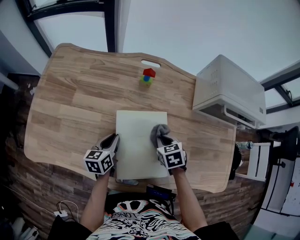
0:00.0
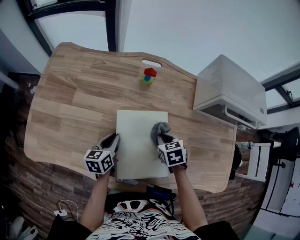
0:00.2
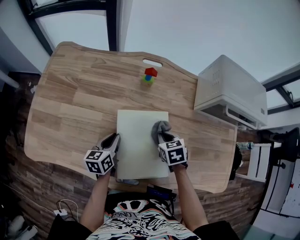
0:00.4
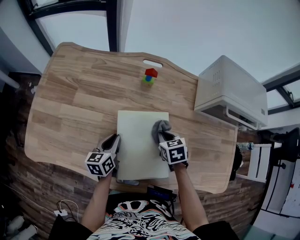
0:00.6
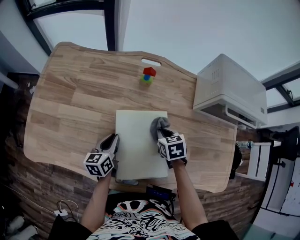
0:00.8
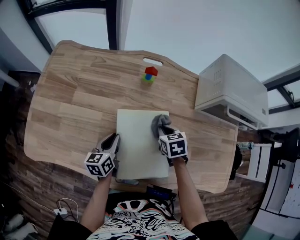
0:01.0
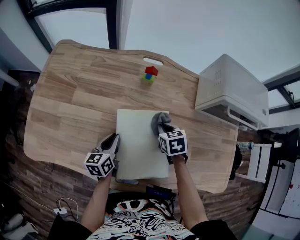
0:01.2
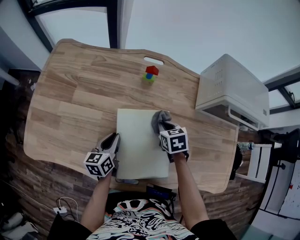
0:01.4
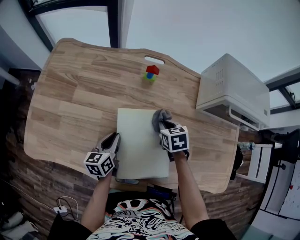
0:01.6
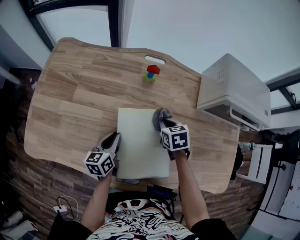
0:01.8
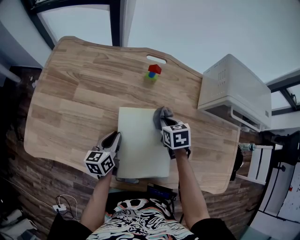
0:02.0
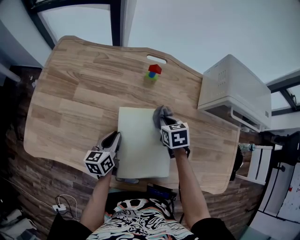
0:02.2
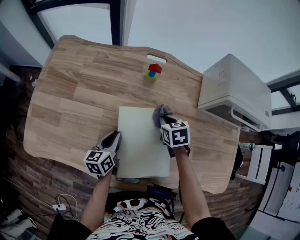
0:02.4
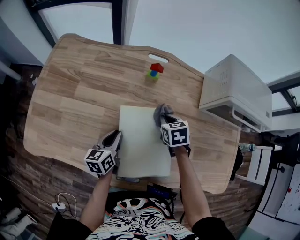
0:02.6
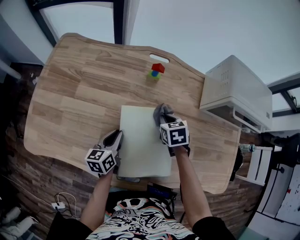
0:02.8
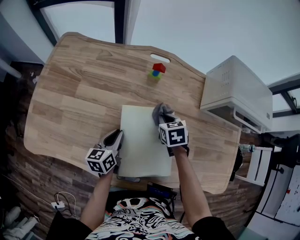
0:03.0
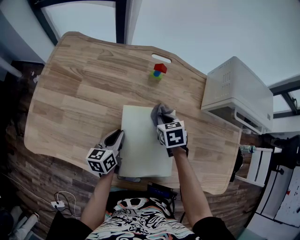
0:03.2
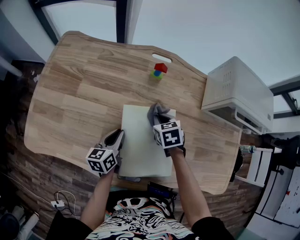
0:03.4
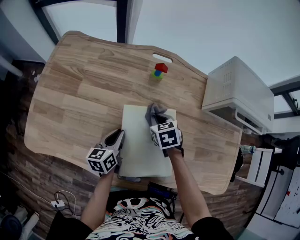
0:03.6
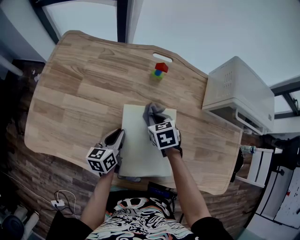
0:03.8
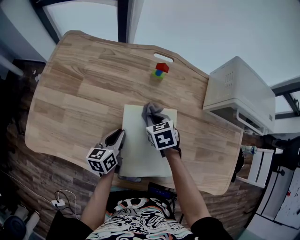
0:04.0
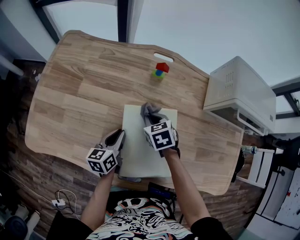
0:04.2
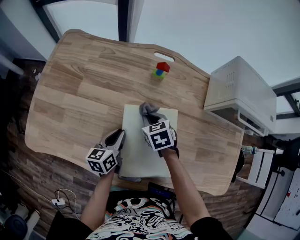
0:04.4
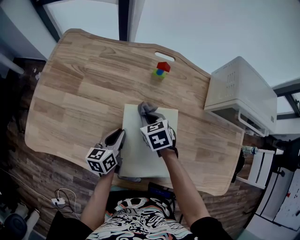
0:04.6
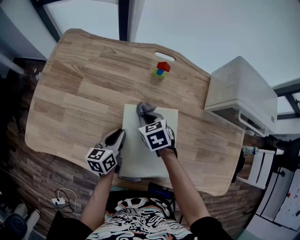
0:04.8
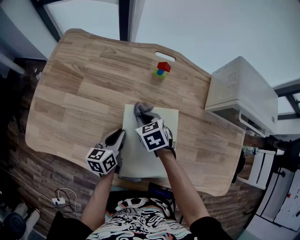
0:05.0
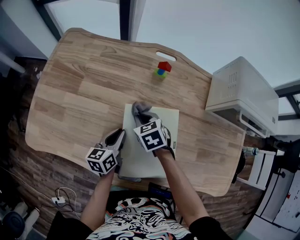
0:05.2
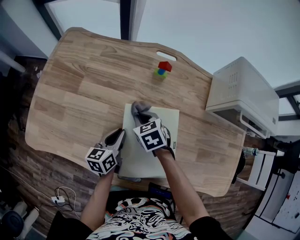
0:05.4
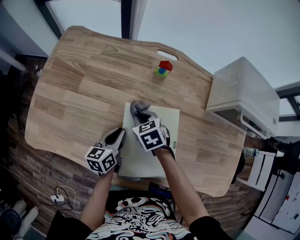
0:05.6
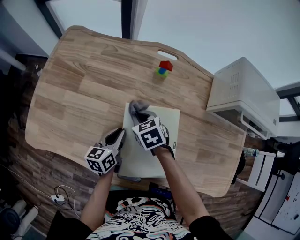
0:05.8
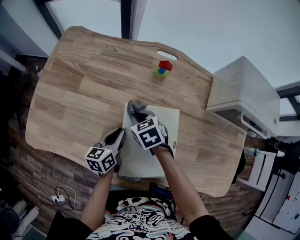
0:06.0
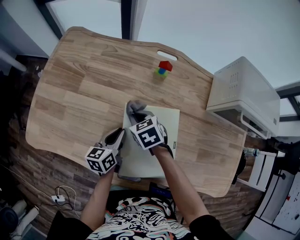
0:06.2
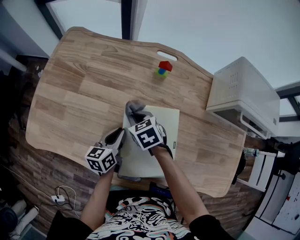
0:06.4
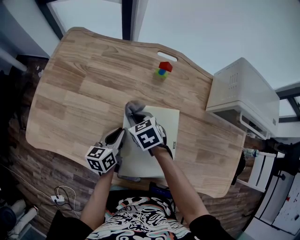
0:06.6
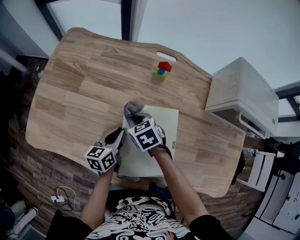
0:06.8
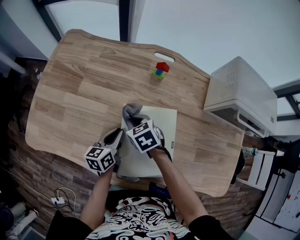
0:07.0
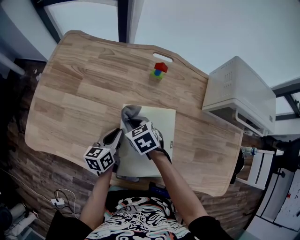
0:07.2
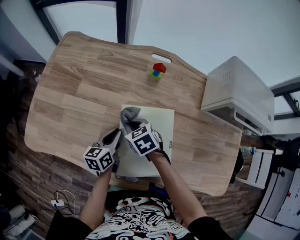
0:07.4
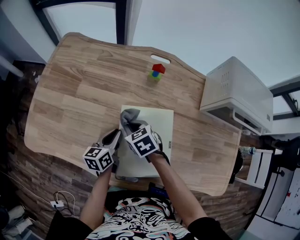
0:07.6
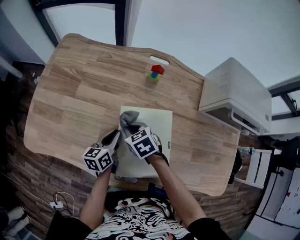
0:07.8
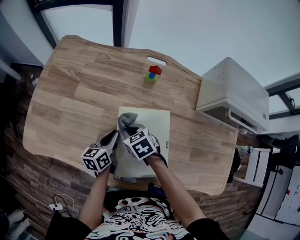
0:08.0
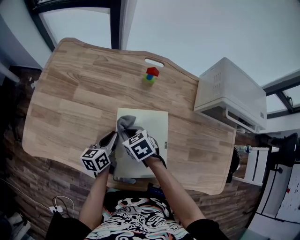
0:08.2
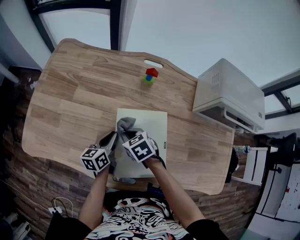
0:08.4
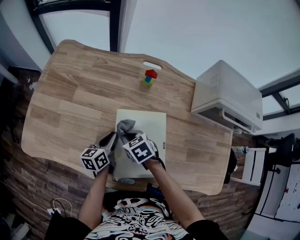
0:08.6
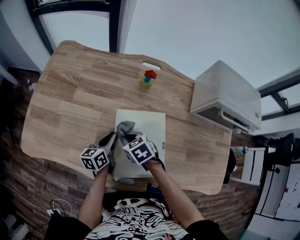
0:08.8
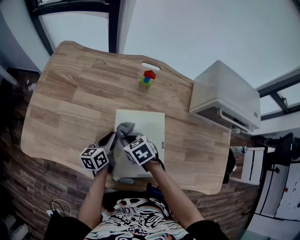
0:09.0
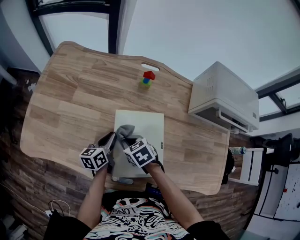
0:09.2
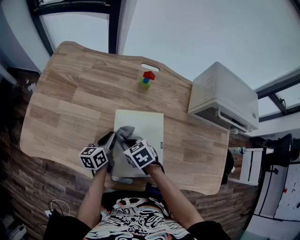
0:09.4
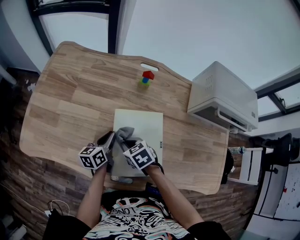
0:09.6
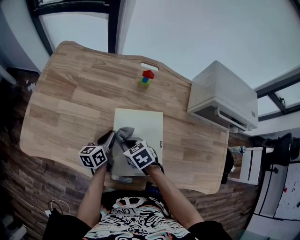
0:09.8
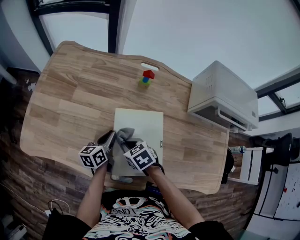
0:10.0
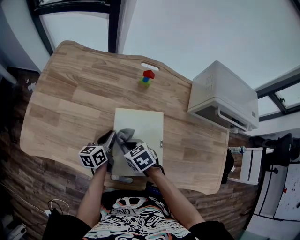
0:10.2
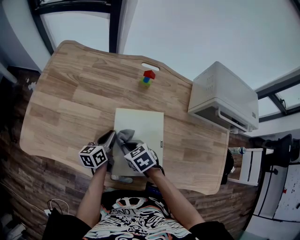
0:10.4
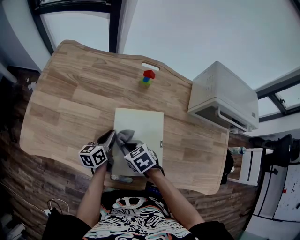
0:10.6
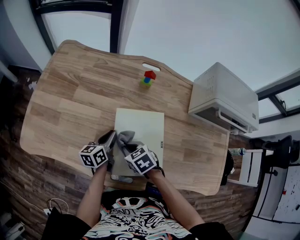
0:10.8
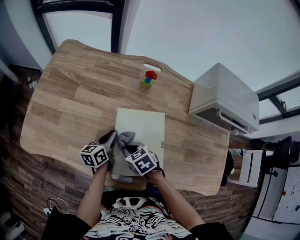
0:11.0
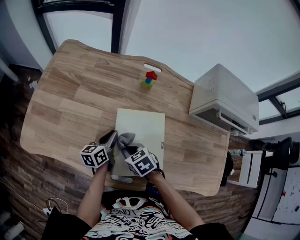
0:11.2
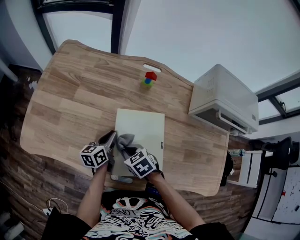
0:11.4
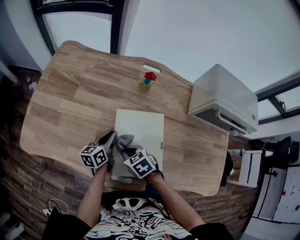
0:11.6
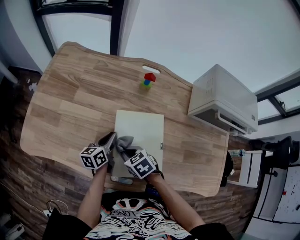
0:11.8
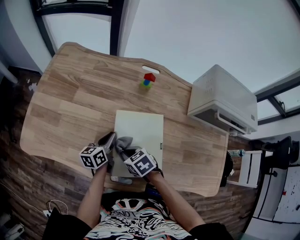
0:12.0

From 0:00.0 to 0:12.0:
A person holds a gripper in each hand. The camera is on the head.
From 0:00.0 to 0:01.6: The right gripper is displaced forward by roughly 5 cm.
From 0:01.6 to 0:03.0: The grippers move only a little.
From 0:03.0 to 0:04.4: The right gripper shifts about 10 cm to the left.
From 0:04.4 to 0:06.0: The right gripper heads to the left, covering roughly 5 cm.
From 0:06.0 to 0:07.6: The grippers move only a little.
From 0:07.6 to 0:09.0: The grippers move only a little.
From 0:09.0 to 0:10.4: The grippers stay close to where they were, moving slightly.
From 0:10.4 to 0:12.0: The grippers move only a little.

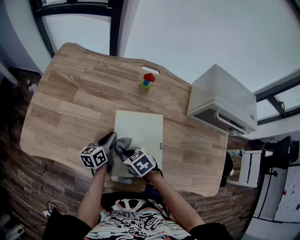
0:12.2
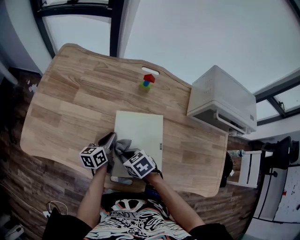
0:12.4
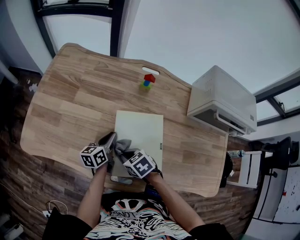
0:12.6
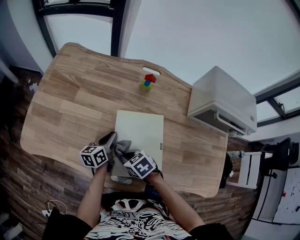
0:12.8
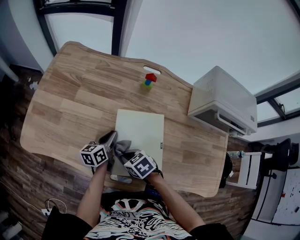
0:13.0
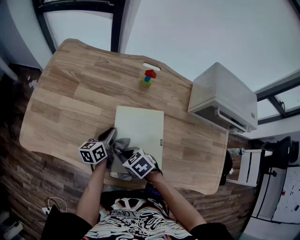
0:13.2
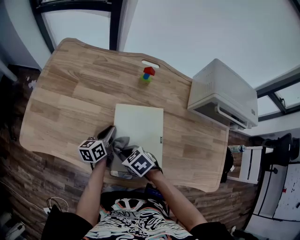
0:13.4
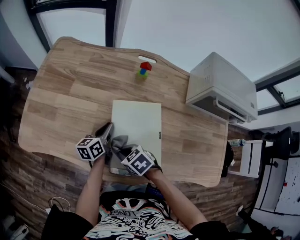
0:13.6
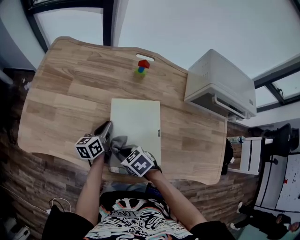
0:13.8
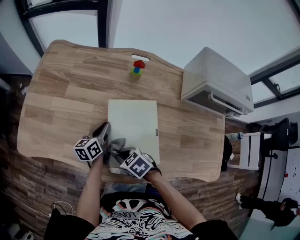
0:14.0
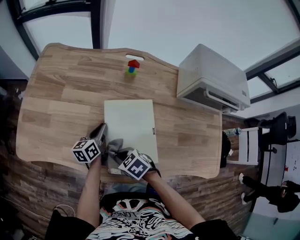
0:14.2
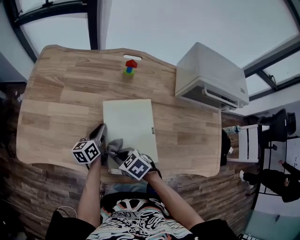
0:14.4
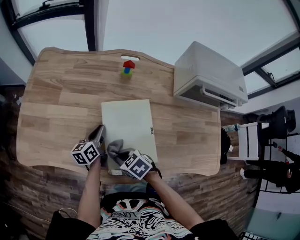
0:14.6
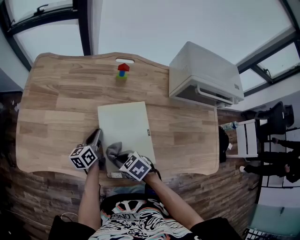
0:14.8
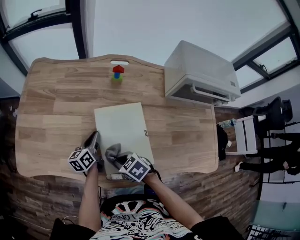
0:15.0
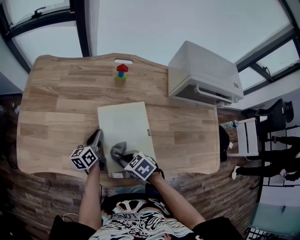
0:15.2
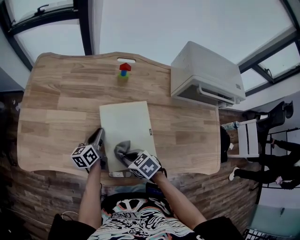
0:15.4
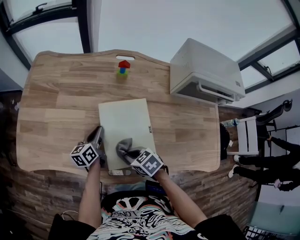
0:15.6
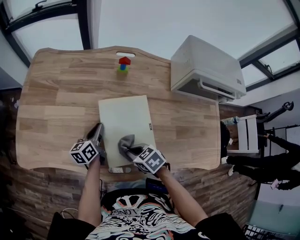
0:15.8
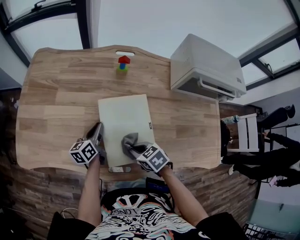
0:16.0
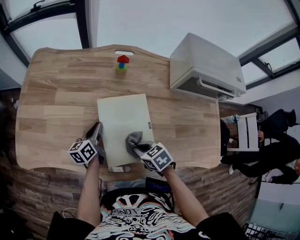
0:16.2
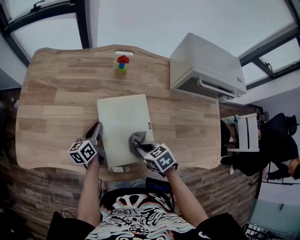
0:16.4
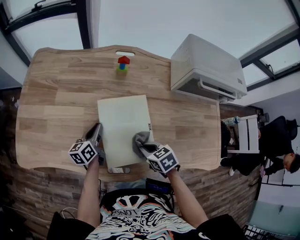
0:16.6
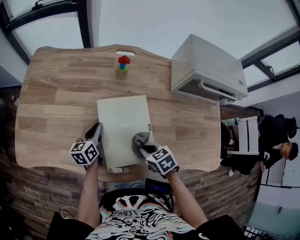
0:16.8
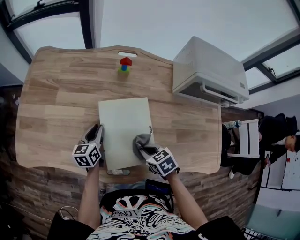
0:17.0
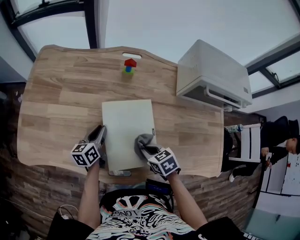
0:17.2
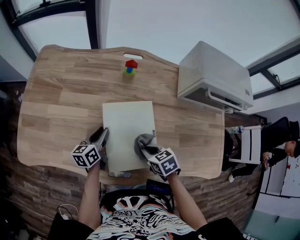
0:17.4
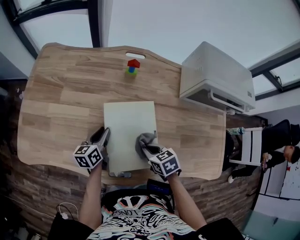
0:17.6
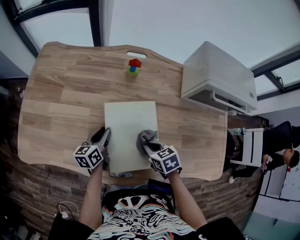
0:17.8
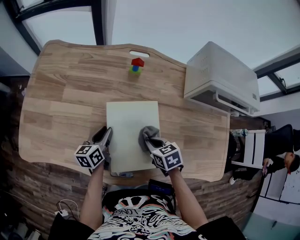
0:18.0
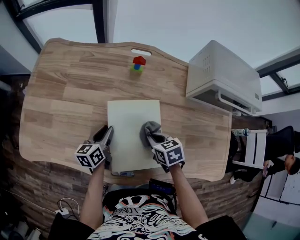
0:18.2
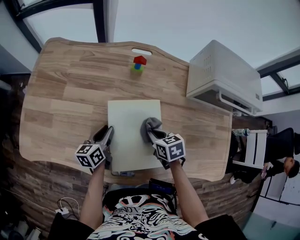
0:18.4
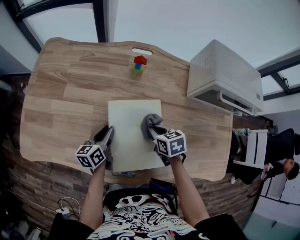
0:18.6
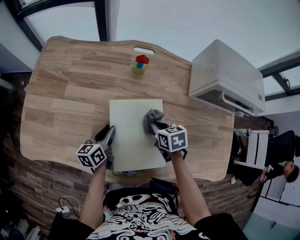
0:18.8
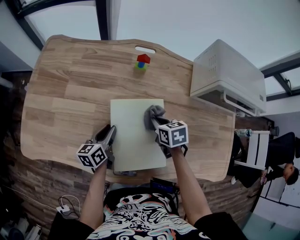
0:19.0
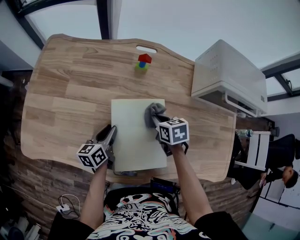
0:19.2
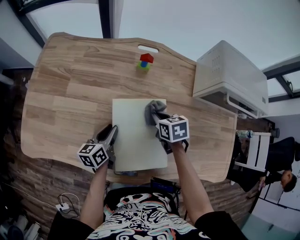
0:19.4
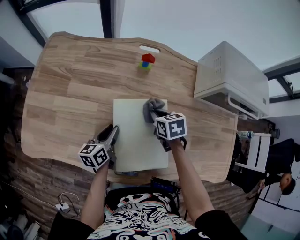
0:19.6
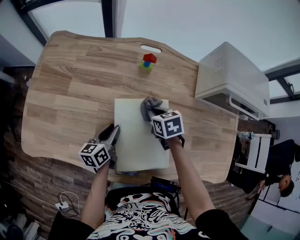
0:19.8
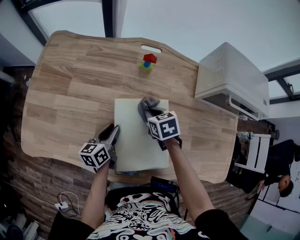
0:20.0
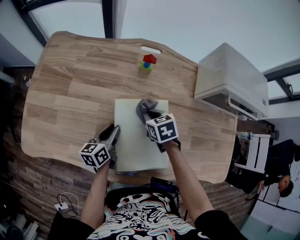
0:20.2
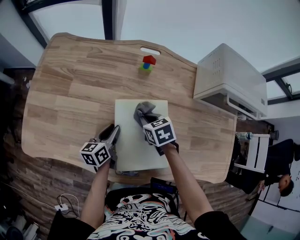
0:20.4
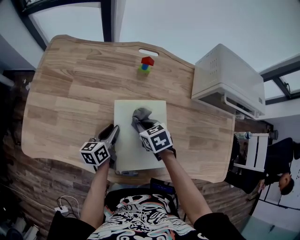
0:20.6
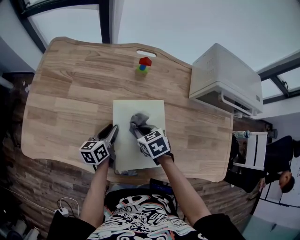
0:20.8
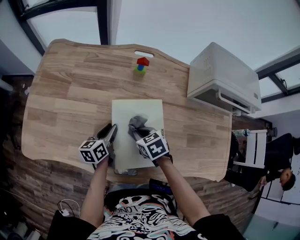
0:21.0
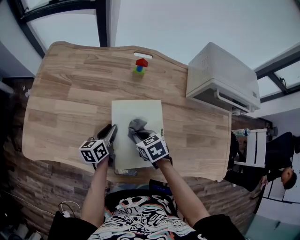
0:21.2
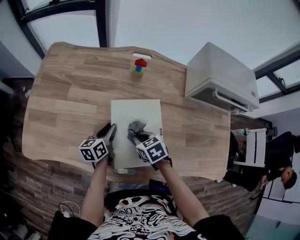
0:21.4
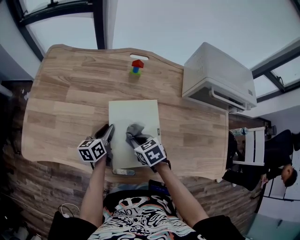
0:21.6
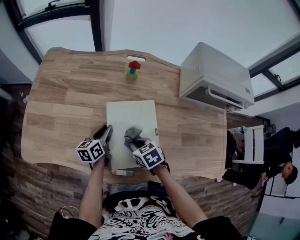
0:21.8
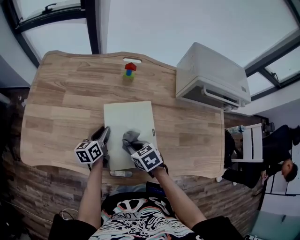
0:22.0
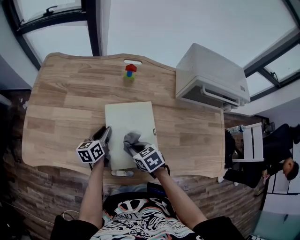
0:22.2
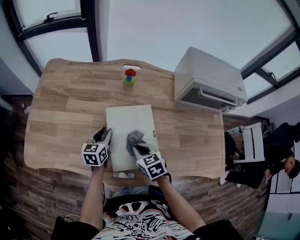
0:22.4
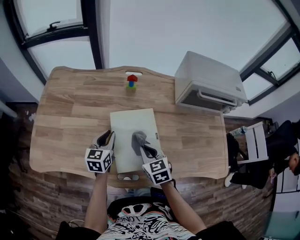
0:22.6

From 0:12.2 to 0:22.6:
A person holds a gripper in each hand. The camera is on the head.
From 0:12.2 to 0:13.6: The grippers stay close to where they were, moving slightly.
From 0:13.6 to 0:15.2: There are only small adjustments of the grippers.
From 0:15.2 to 0:16.6: The right gripper shifts about 10 cm to the right.
From 0:16.6 to 0:18.2: The right gripper shifts about 10 cm forward.
From 0:18.2 to 0:19.6: The right gripper moves forward, approximately 10 cm.
From 0:19.6 to 0:21.2: The right gripper heads backward and to the left, covering approximately 15 cm.
From 0:21.2 to 0:22.6: The left gripper shifts approximately 10 cm upward, and rotates roughly 30 degrees, while the right gripper heads upward and backward, covering roughly 10 cm, and rotates roughly 30 degrees.

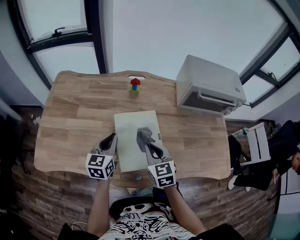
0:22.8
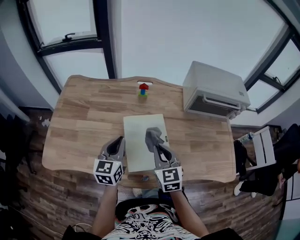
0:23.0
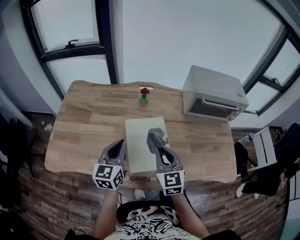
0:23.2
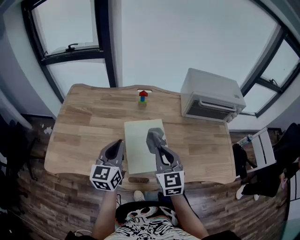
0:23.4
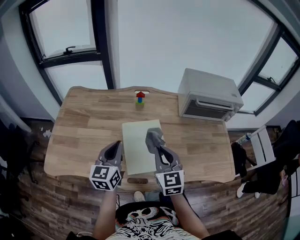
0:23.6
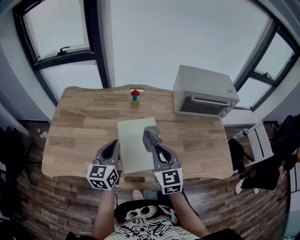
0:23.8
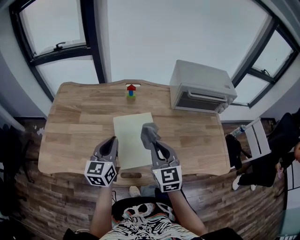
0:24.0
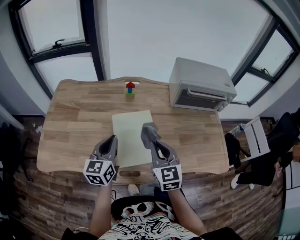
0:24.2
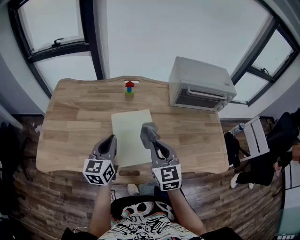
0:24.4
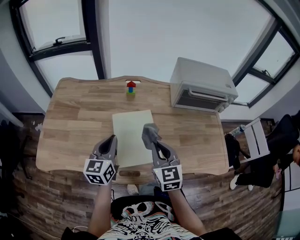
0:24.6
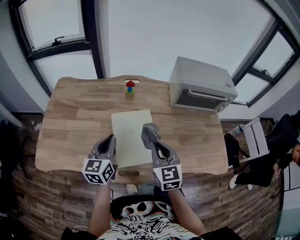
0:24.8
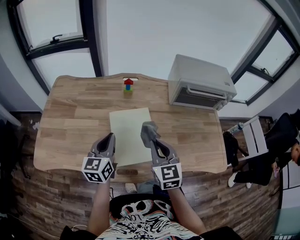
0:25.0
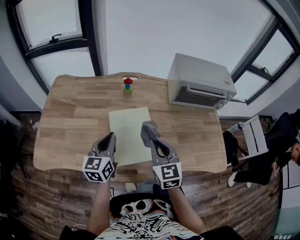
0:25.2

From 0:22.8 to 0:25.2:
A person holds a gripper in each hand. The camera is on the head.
From 0:22.8 to 0:24.0: The left gripper moves upward and backward, approximately 10 cm. The right gripper is displaced upward by approximately 10 cm.
From 0:24.0 to 0:25.2: The grippers stay close to where they were, moving slightly.
